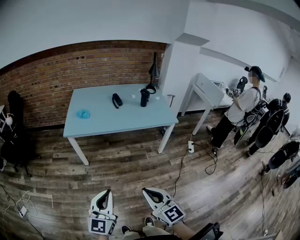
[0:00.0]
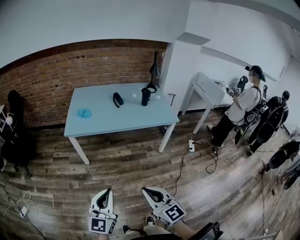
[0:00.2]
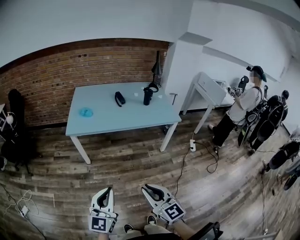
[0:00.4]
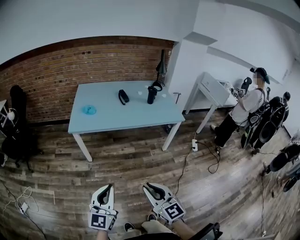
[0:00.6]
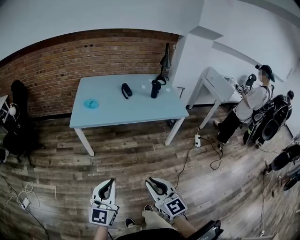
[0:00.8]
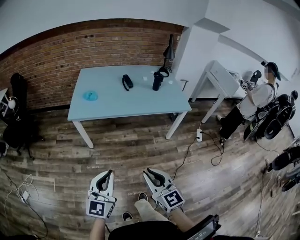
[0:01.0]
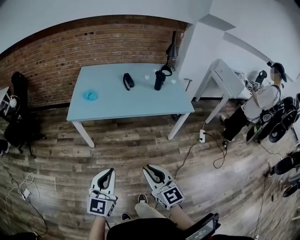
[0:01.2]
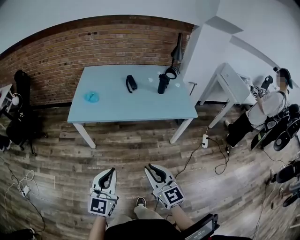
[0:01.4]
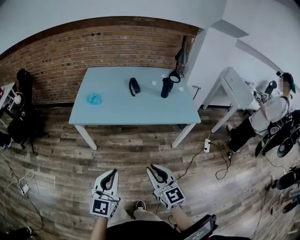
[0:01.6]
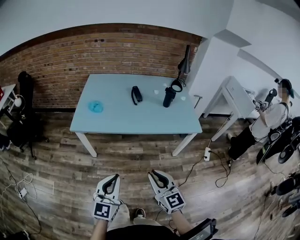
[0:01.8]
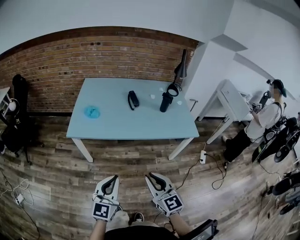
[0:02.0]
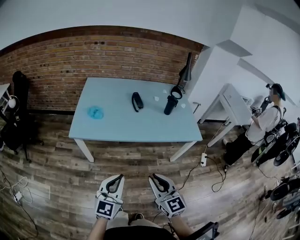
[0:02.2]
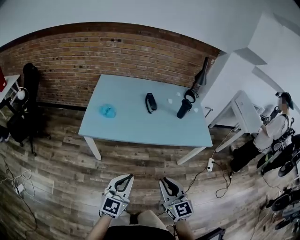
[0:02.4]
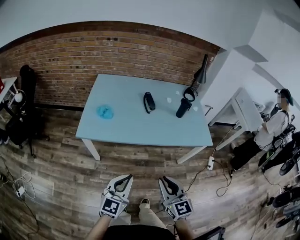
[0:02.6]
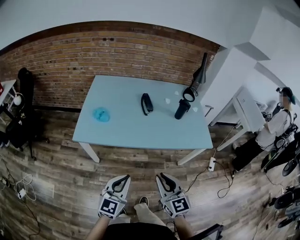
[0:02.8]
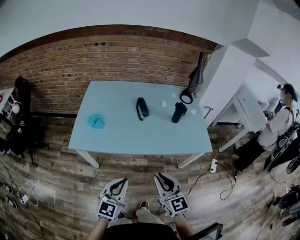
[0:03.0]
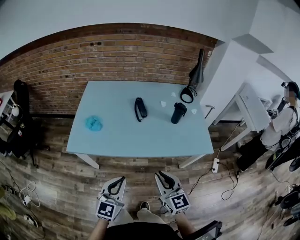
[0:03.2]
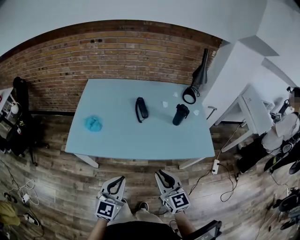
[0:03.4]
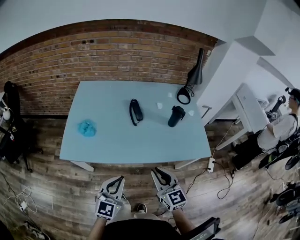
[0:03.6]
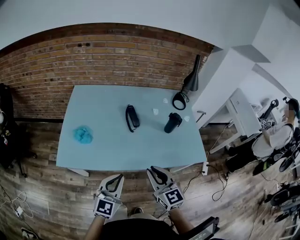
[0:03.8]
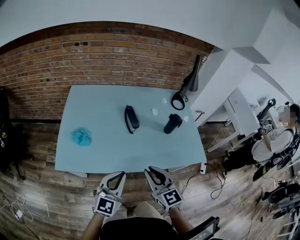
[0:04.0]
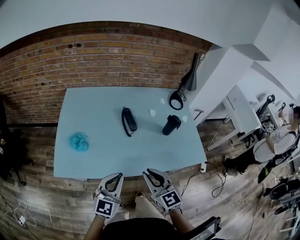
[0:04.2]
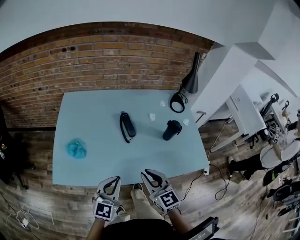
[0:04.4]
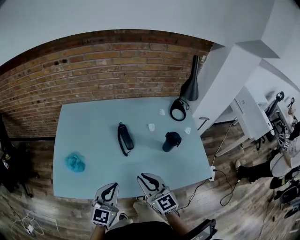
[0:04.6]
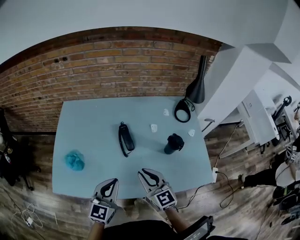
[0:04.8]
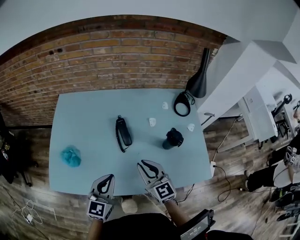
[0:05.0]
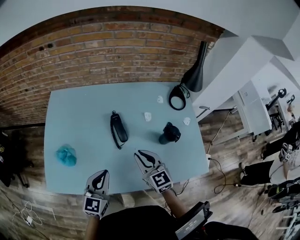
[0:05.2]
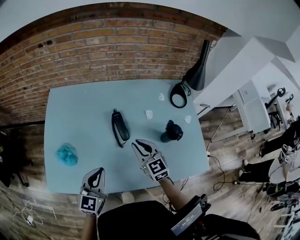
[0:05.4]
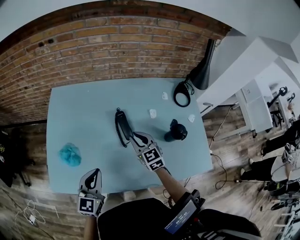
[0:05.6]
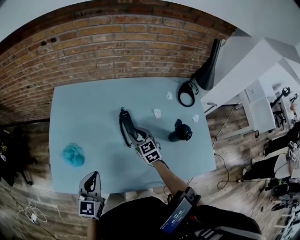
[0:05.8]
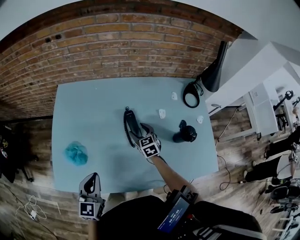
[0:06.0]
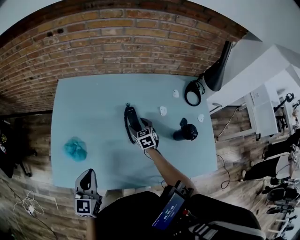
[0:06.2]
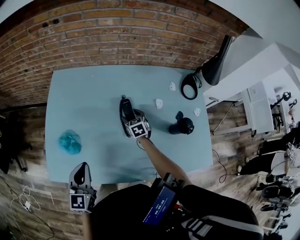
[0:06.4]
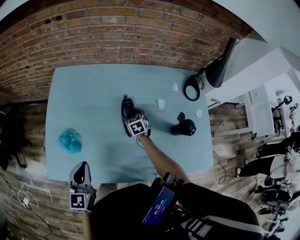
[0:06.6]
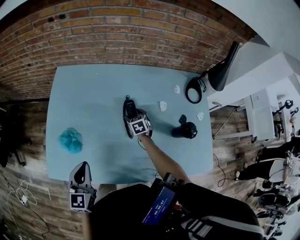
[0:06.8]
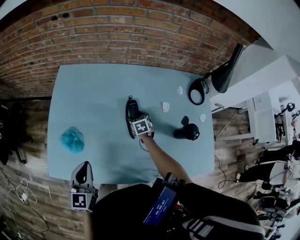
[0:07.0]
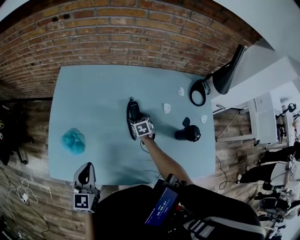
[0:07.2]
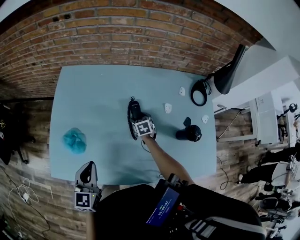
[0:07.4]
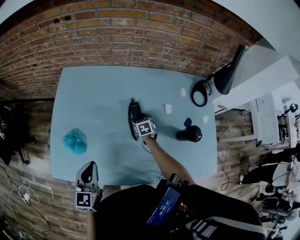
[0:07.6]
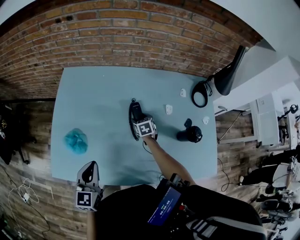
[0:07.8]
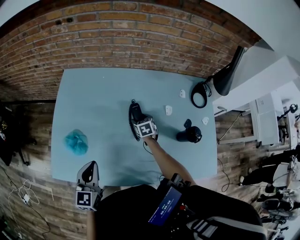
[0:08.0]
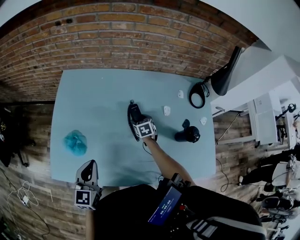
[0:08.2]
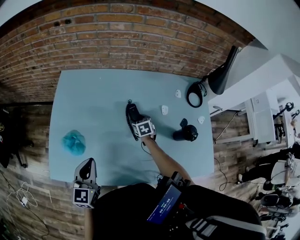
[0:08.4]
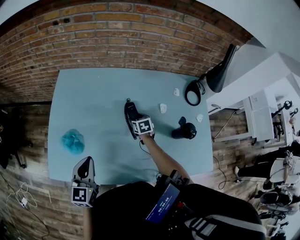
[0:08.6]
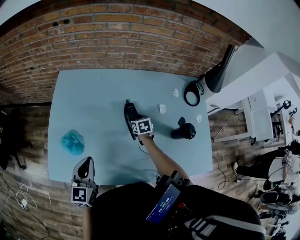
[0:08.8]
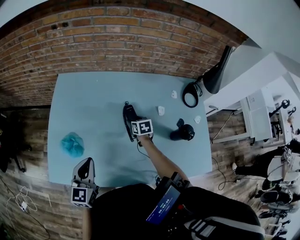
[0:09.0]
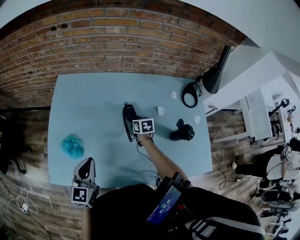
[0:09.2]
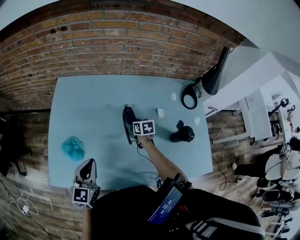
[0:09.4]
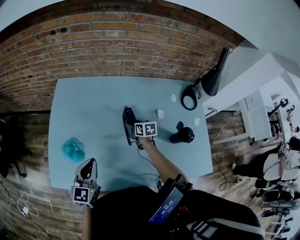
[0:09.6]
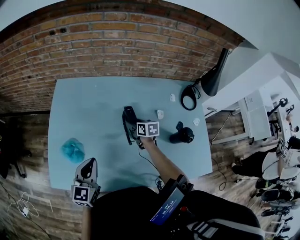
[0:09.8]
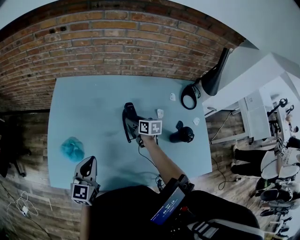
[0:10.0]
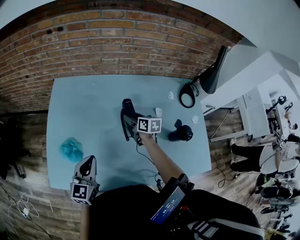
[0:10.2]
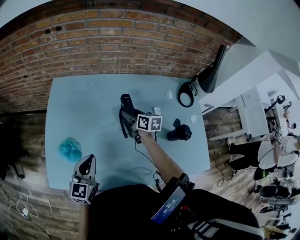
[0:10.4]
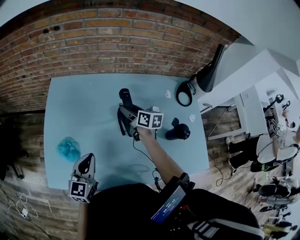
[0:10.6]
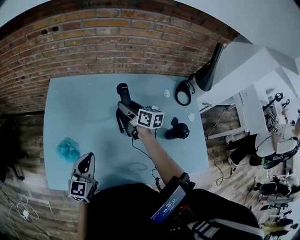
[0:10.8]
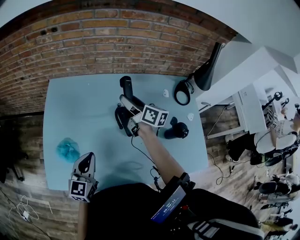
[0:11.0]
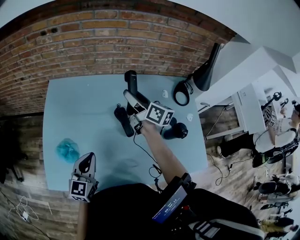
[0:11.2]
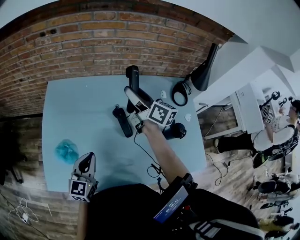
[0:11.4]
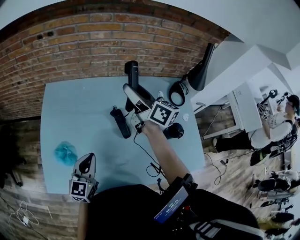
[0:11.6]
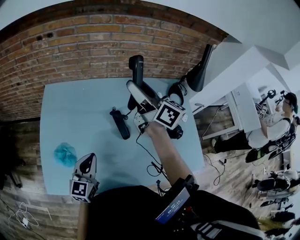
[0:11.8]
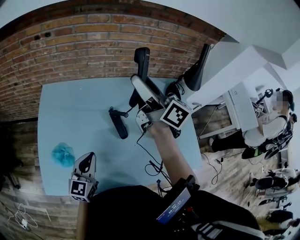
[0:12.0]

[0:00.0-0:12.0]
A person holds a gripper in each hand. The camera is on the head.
0.0 to 1.6 s: The grippers both shift forward by approximately 20 cm.
1.6 to 3.0 s: Both grippers move forward, some 20 cm.
3.0 to 4.4 s: Both grippers move forward, approximately 25 cm.
4.4 to 6.0 s: The right gripper heads forward and downward, covering approximately 40 cm, changes its angle by approximately 20 degrees, and opens up; the left gripper moves forward and to the left, approximately 20 cm, and changes its angle by some 20 degrees.
6.0 to 7.6 s: The right gripper moves downward and forward, roughly 10 cm.
7.6 to 9.0 s: There are only small adjustments of the grippers.
9.0 to 10.4 s: The right gripper heads upward, covering approximately 10 cm, and changes its angle by about 30 degrees.
10.4 to 12.0 s: The right gripper travels upward by approximately 35 cm, and tips its fingers upward by approximately 40 degrees.

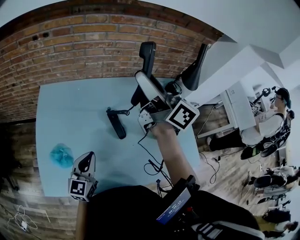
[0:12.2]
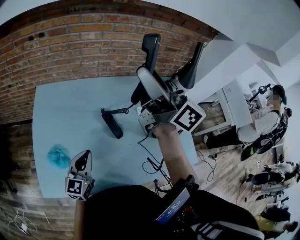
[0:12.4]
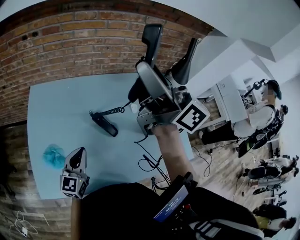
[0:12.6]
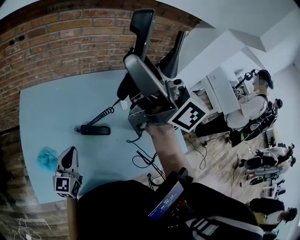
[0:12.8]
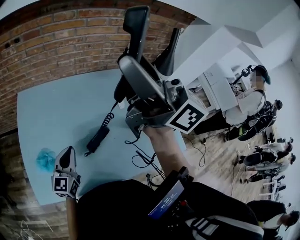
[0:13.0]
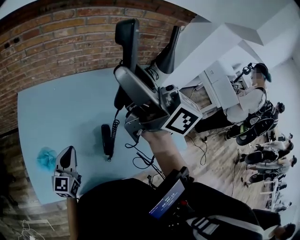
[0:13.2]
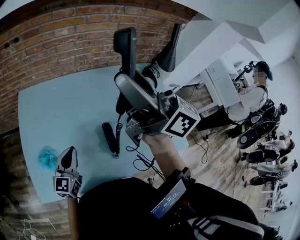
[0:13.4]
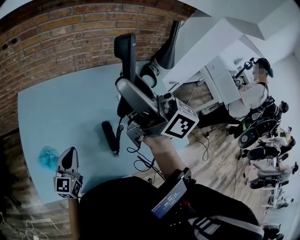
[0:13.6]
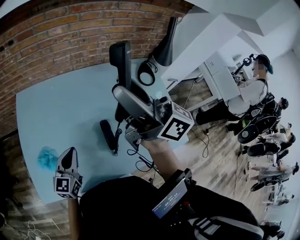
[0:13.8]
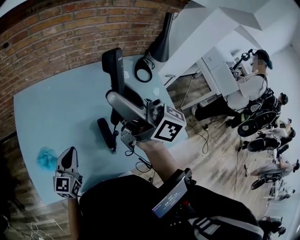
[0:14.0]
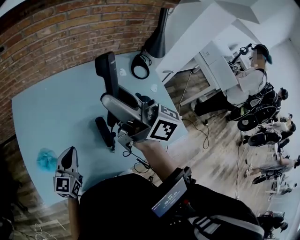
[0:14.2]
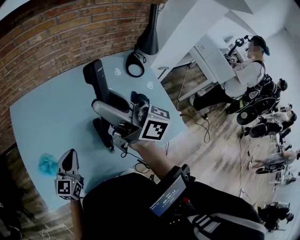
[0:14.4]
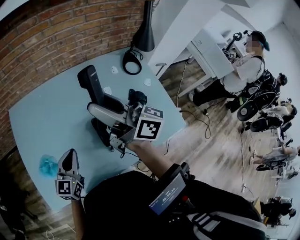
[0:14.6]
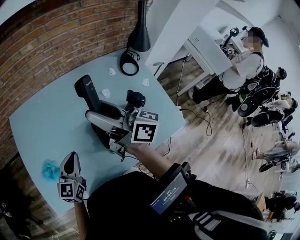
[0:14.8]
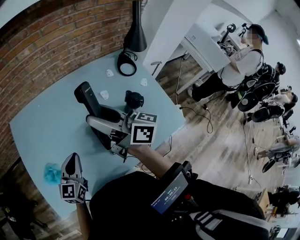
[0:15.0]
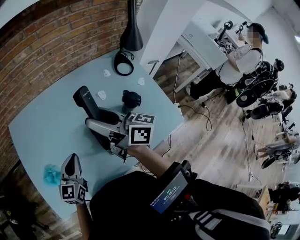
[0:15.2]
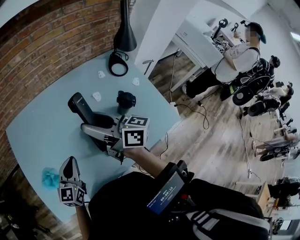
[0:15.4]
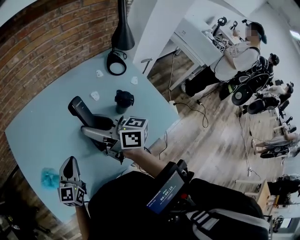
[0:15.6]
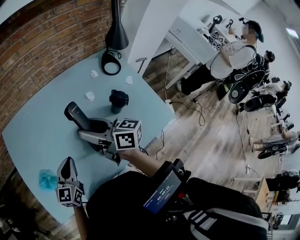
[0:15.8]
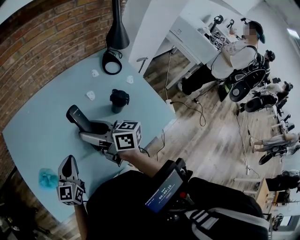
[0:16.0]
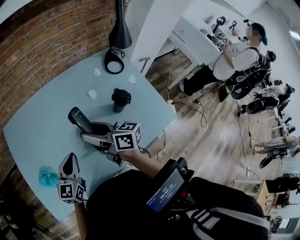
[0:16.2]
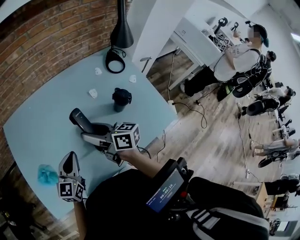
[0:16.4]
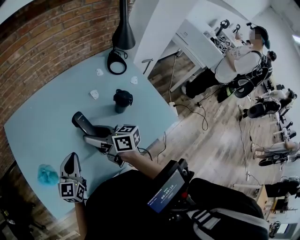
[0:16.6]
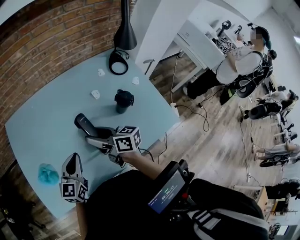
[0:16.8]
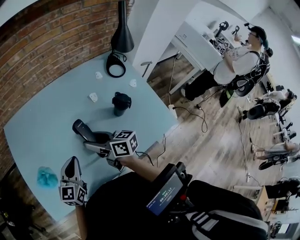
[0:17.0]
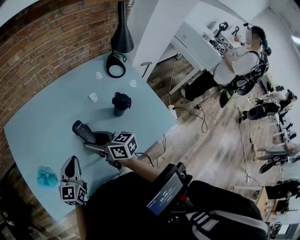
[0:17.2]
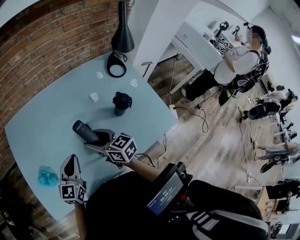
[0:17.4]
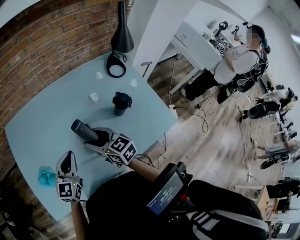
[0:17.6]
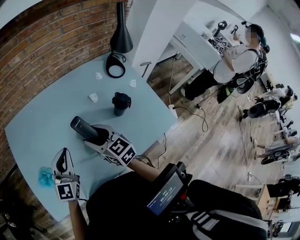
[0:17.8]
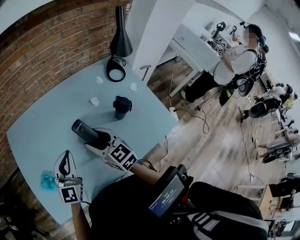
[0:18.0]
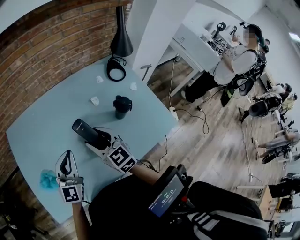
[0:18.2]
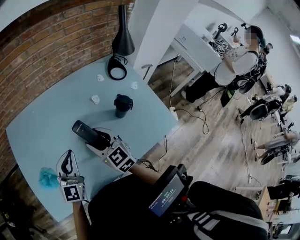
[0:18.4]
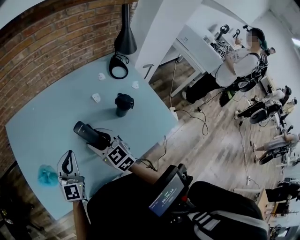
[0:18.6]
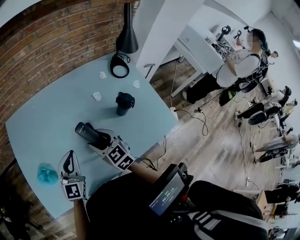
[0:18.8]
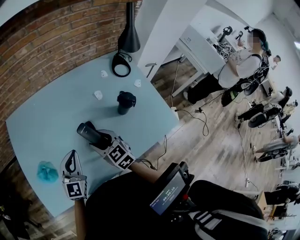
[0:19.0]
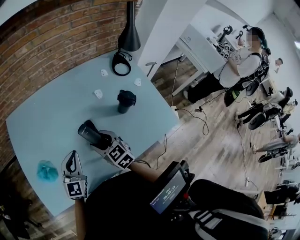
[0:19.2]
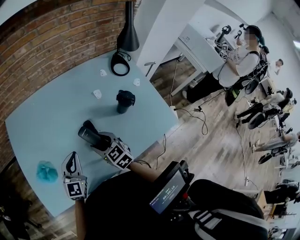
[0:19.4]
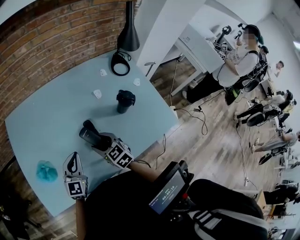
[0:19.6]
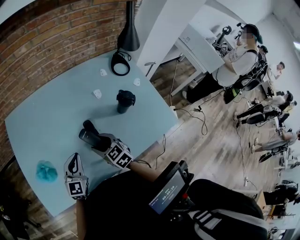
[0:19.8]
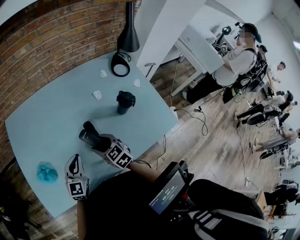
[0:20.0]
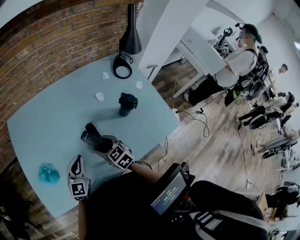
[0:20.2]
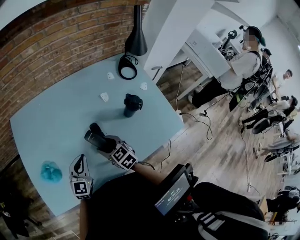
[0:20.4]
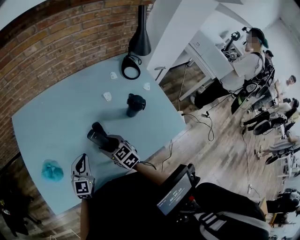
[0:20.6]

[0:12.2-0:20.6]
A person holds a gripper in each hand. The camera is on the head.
12.2 to 13.6 s: The right gripper heads backward, covering roughly 10 cm, and moves about 10 cm upward and comes back.
13.6 to 15.0 s: The right gripper moves downward, about 15 cm; the left gripper heads to the right, covering about 5 cm.
15.0 to 16.4 s: The right gripper is displaced downward by approximately 15 cm.
16.4 to 17.8 s: The left gripper goes some 5 cm upward. Meanwhile the right gripper changes its angle by approximately 40 degrees.
17.8 to 19.2 s: The grippers both shift downward by roughly 5 cm.
19.2 to 20.6 s: The left gripper travels downward by approximately 5 cm.

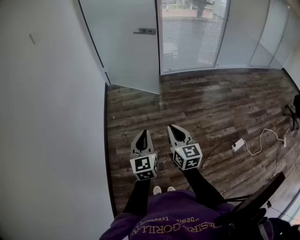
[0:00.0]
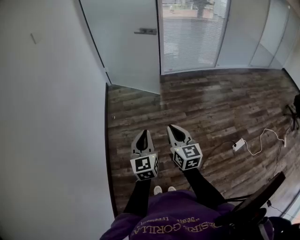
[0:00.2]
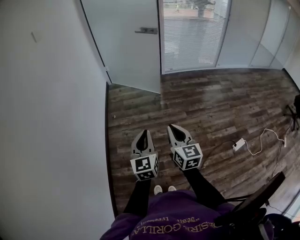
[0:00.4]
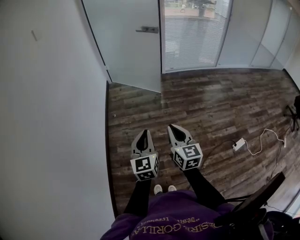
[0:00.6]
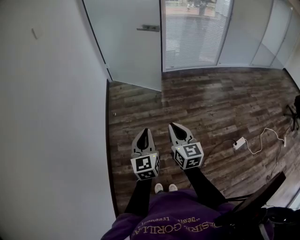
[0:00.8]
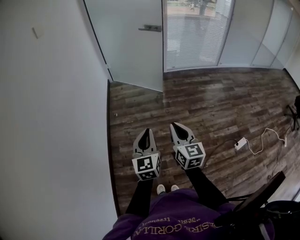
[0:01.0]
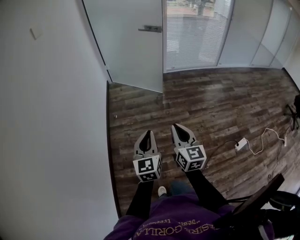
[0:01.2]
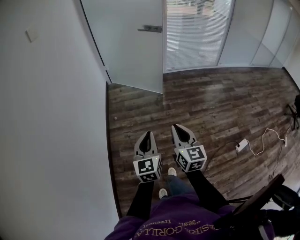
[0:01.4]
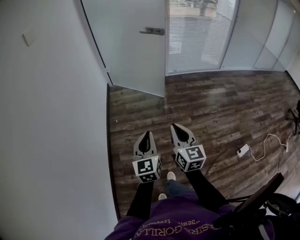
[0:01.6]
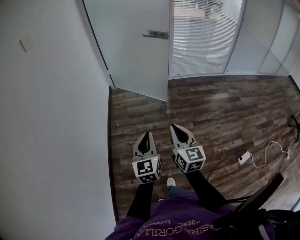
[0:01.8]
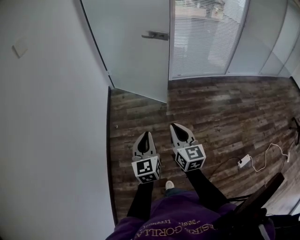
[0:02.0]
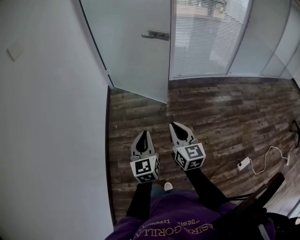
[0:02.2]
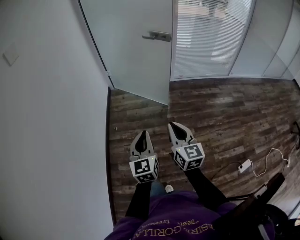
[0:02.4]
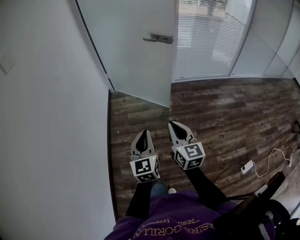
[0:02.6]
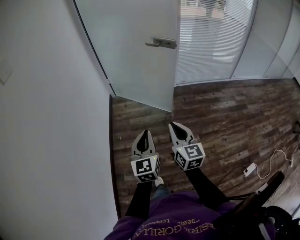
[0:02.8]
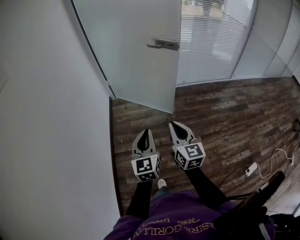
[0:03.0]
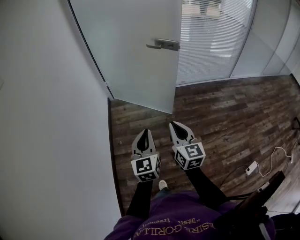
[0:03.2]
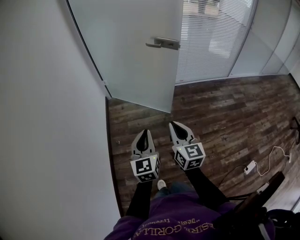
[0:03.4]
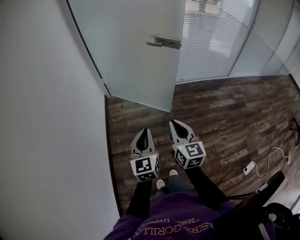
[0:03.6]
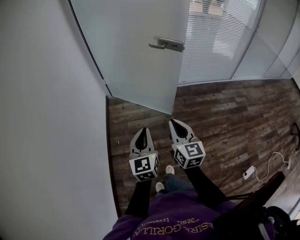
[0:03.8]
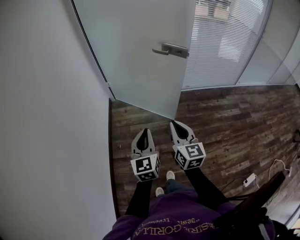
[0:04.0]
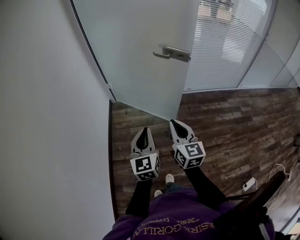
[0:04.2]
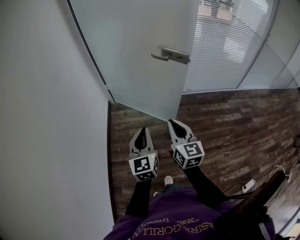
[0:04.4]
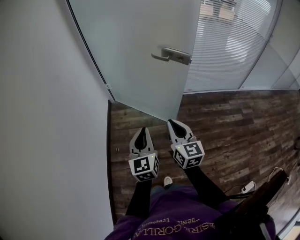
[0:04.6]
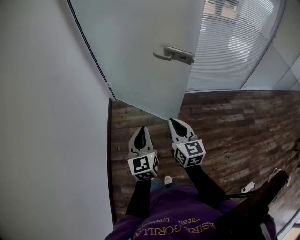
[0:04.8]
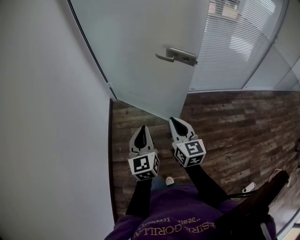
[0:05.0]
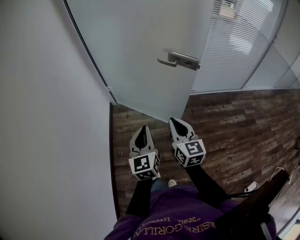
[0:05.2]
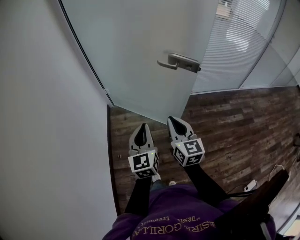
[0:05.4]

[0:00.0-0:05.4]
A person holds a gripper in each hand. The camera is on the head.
0.0 to 1.4 s: Both grippers move forward, roughly 5 cm.
1.4 to 2.8 s: Both grippers travel together forward, about 30 cm.
2.8 to 4.0 s: The two grippers go approximately 15 cm forward.
4.0 to 5.4 s: Both grippers travel together forward, some 20 cm.
